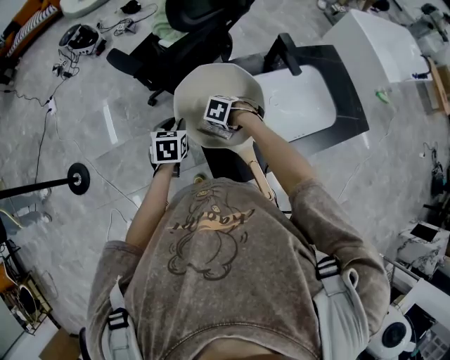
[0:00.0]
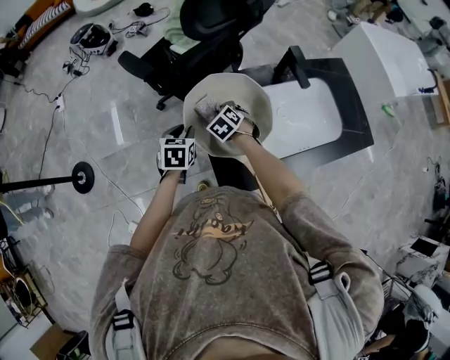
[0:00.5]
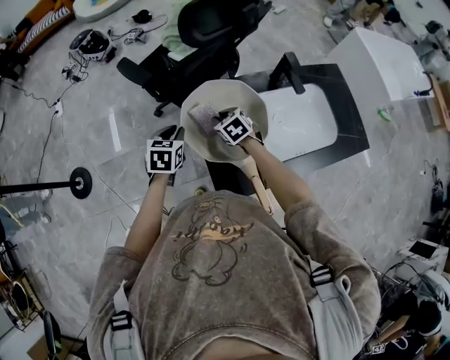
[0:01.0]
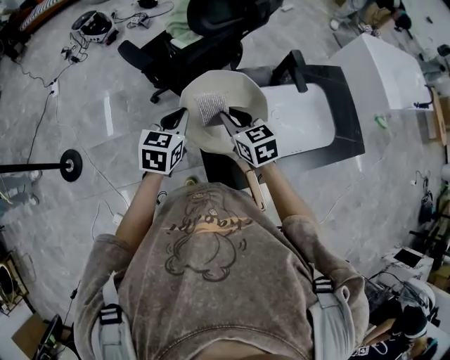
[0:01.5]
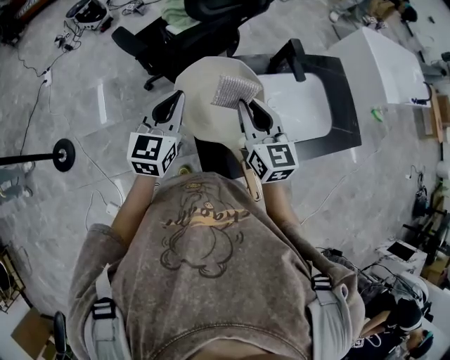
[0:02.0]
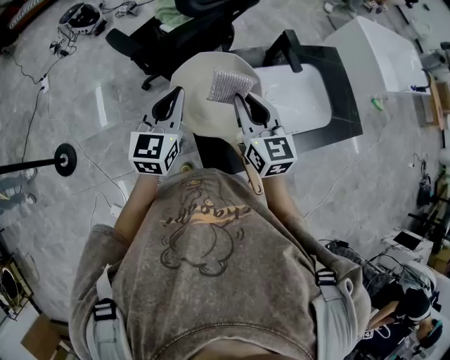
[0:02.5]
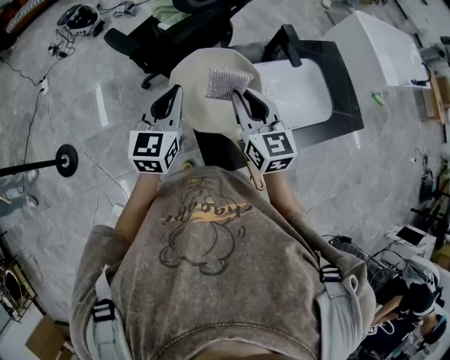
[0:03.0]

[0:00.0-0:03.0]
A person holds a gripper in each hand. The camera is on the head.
0:00.0 to 0:01.5: The left gripper heads upward, covering some 10 cm, and closes up. The right gripper is displaced upward by approximately 20 cm, and points its fingers approximately 50 degrees further upward.
0:01.5 to 0:03.0: Both grippers travel together upward, some 5 cm. The right gripper changes its angle by roughly 30 degrees.

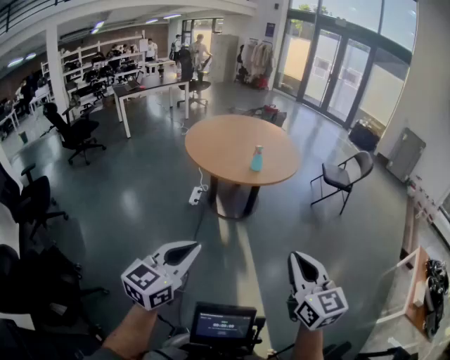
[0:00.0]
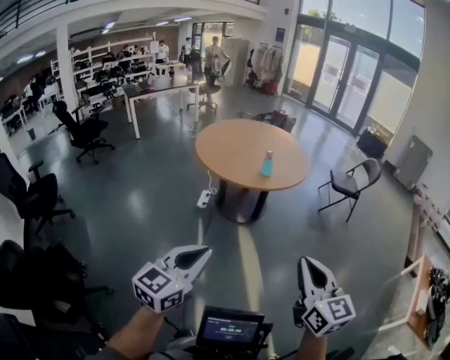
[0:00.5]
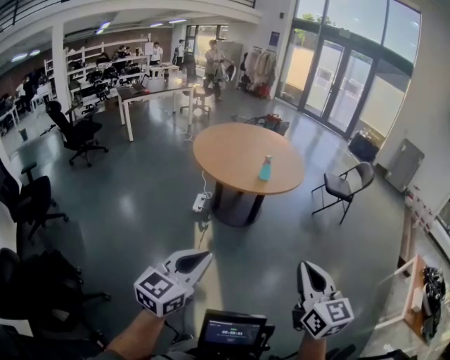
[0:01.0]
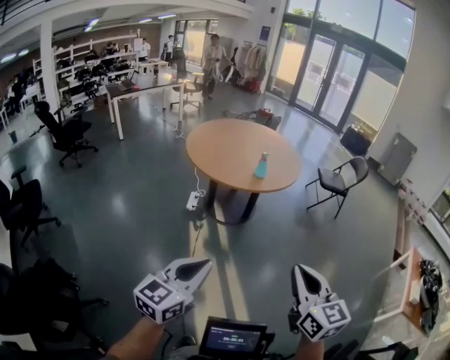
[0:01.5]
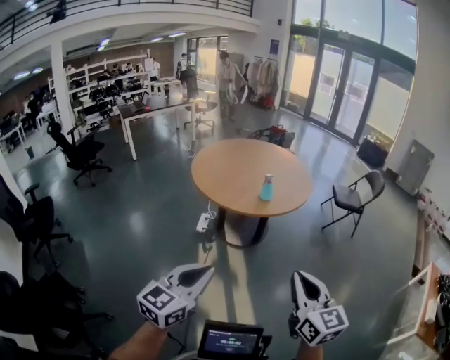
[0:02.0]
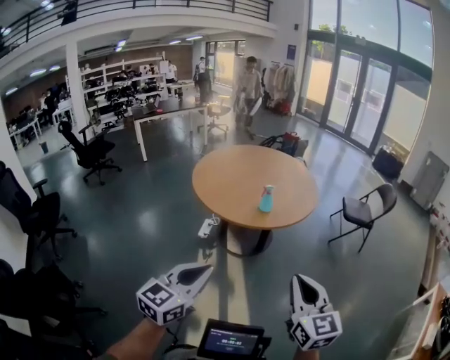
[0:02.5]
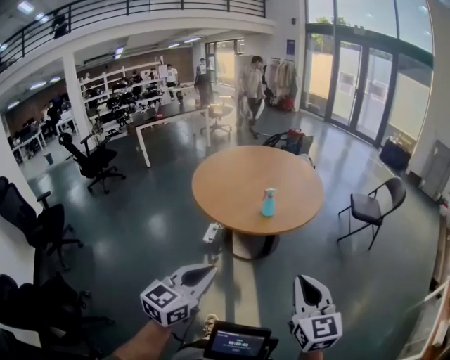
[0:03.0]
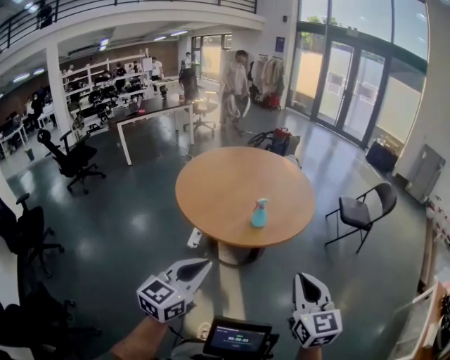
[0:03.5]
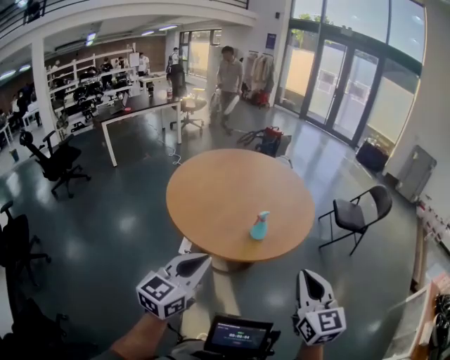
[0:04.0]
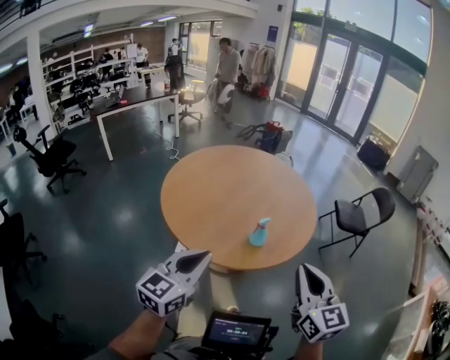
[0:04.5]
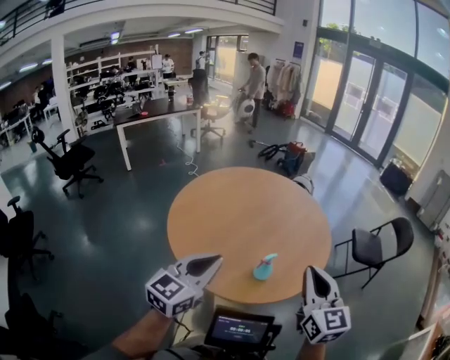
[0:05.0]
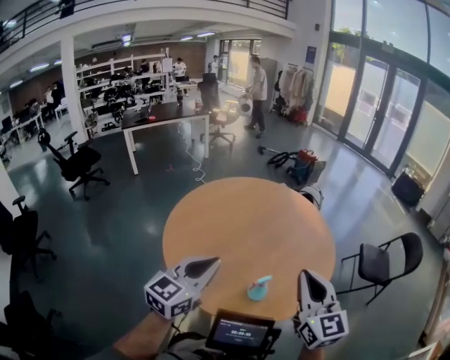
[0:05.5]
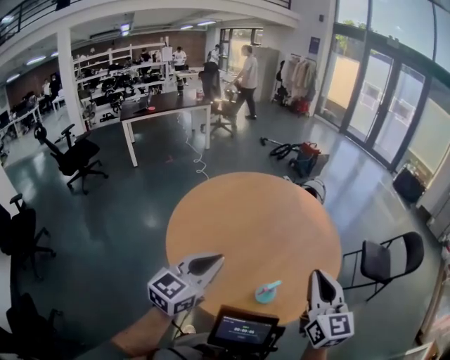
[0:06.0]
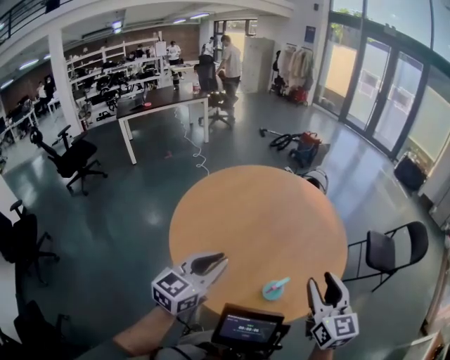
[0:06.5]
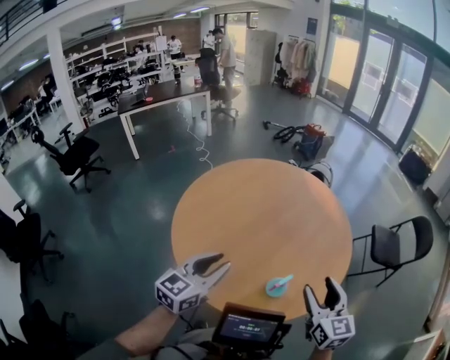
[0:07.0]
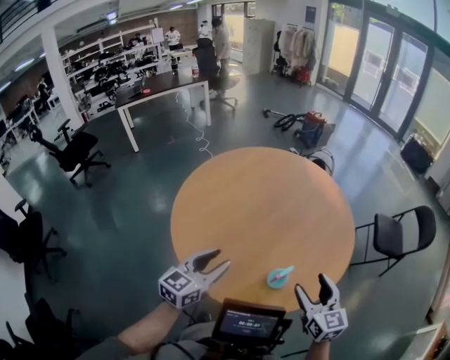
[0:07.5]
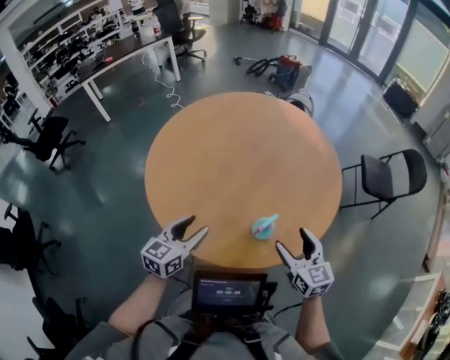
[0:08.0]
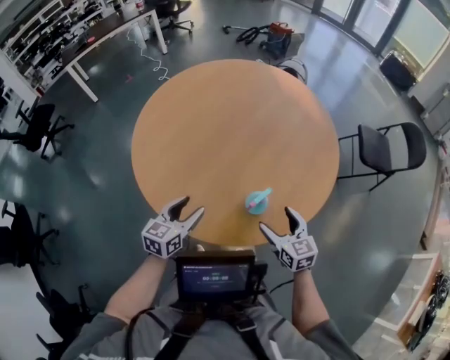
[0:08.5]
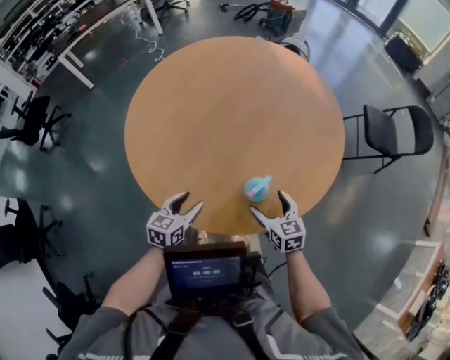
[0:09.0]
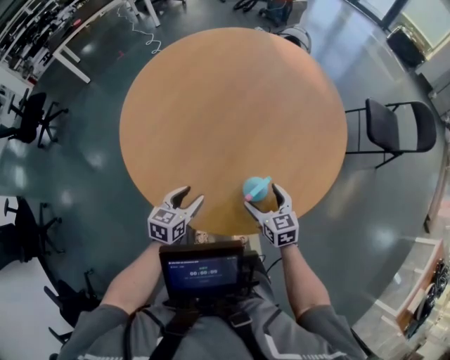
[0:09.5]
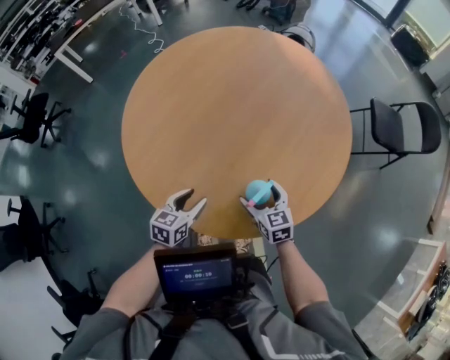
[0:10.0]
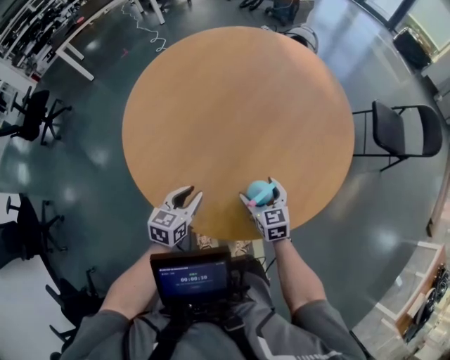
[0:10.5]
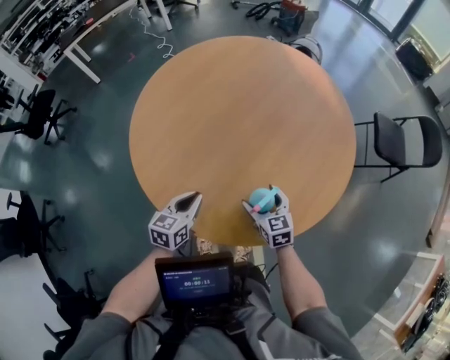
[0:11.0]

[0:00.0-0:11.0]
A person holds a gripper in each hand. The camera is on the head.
0:00.0 to 0:02.0: Both grippers move forward, approximately 10 cm.
0:02.0 to 0:03.5: The grippers both shift forward by some 25 cm.
0:03.5 to 0:05.5: Both grippers move forward, roughly 35 cm.
0:05.5 to 0:07.5: Both grippers move downward, roughly 15 cm. The left gripper opens. Meanwhile the right gripper opens.
0:07.5 to 0:09.0: Both grippers travel together downward, roughly 20 cm. The left gripper rotates approximately 20 degrees.
0:09.0 to 0:11.0: The right gripper shifts approximately 5 cm forward. Meanwhile the left gripper closes its fingers.

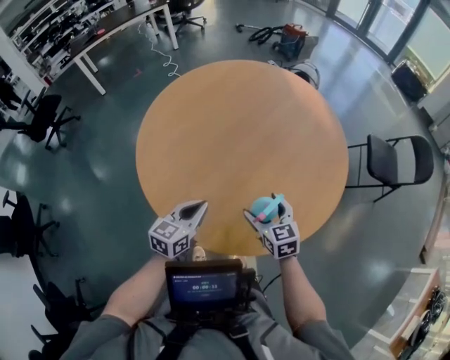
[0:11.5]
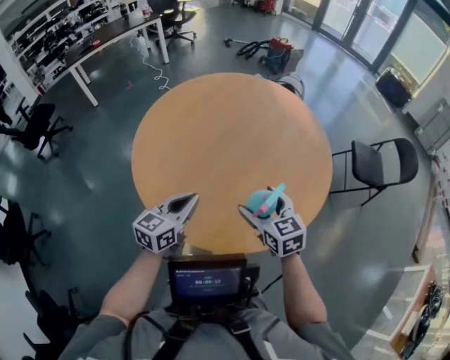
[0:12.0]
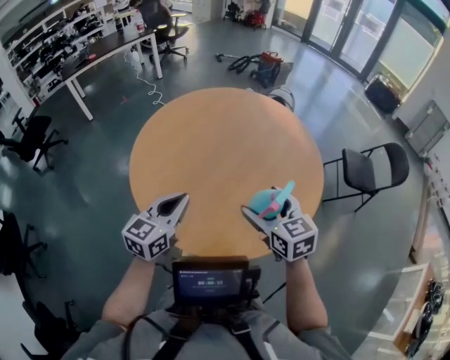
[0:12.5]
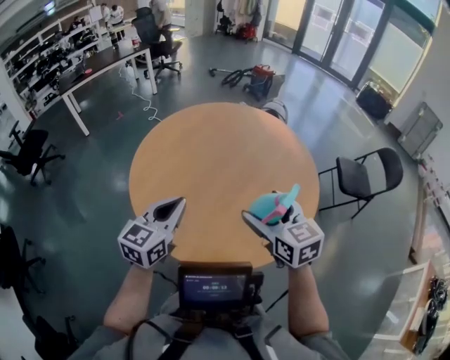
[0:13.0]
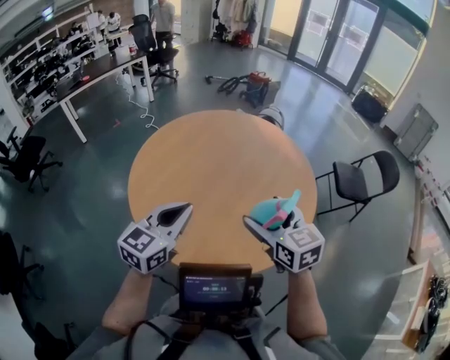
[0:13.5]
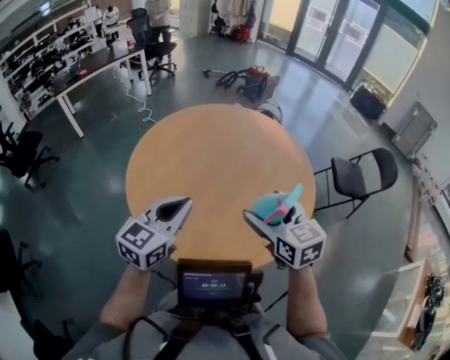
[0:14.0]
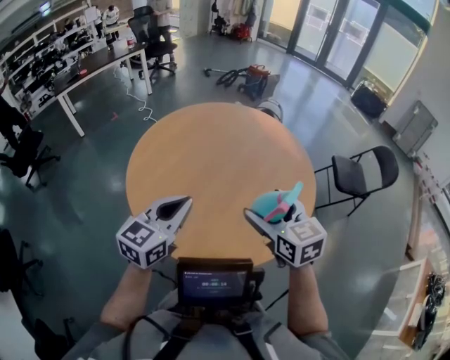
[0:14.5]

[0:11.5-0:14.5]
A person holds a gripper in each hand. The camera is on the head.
0:11.5 to 0:13.0: Both grippers move upward, about 20 cm.
0:13.0 to 0:14.5: There are only small adjustments of the grippers.

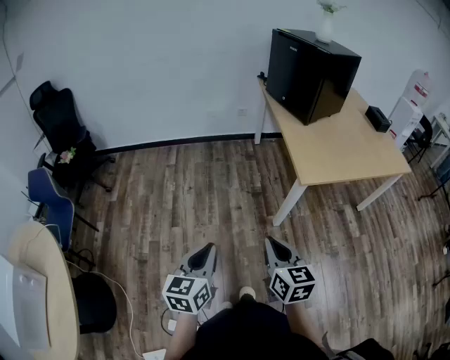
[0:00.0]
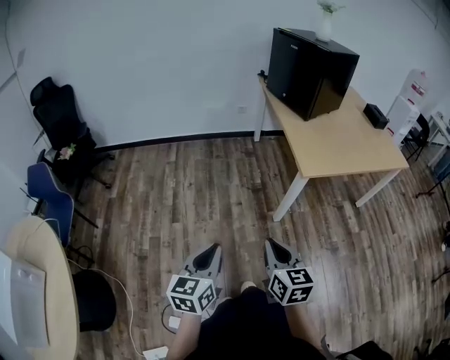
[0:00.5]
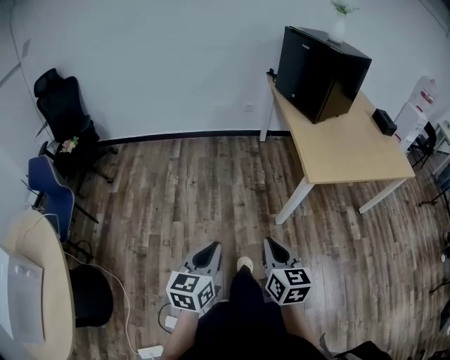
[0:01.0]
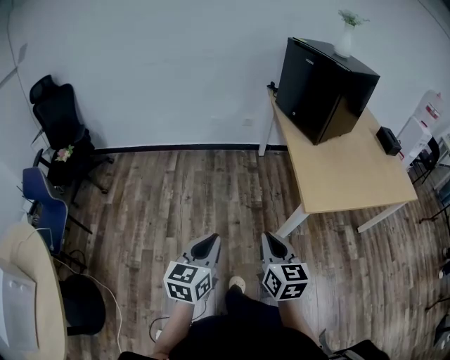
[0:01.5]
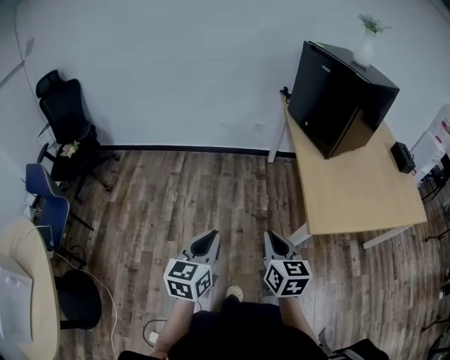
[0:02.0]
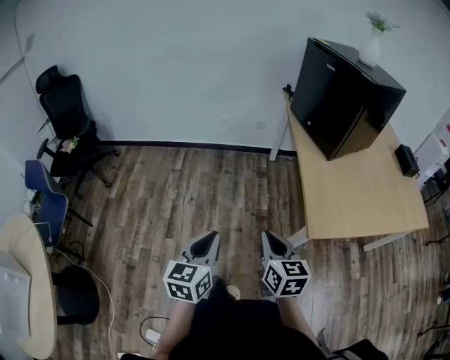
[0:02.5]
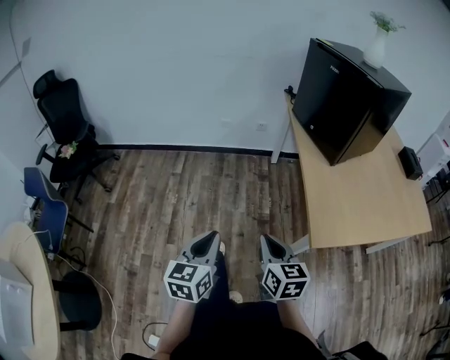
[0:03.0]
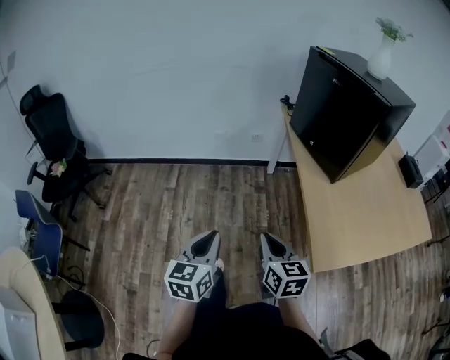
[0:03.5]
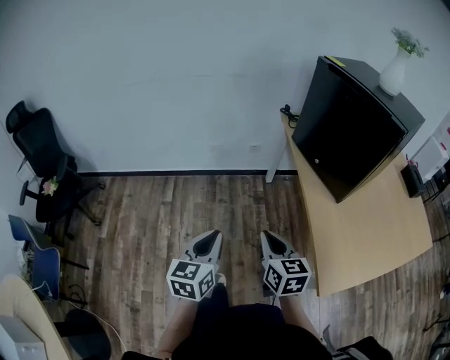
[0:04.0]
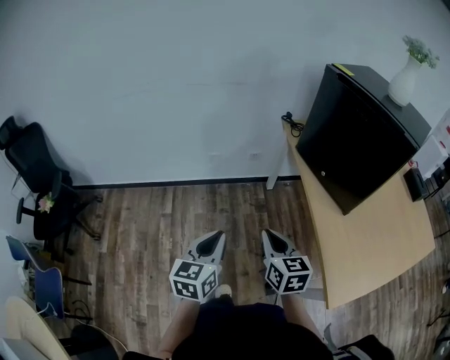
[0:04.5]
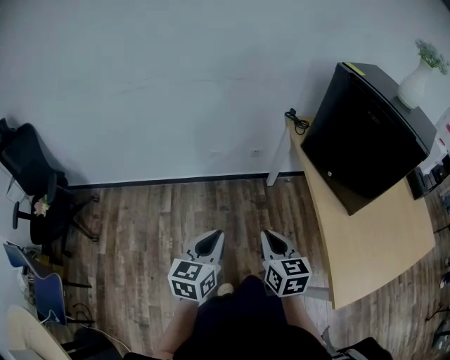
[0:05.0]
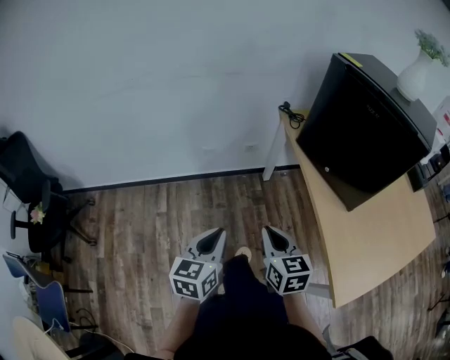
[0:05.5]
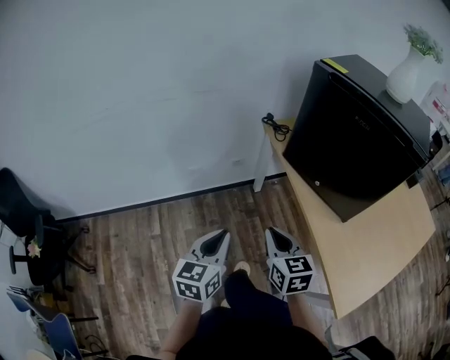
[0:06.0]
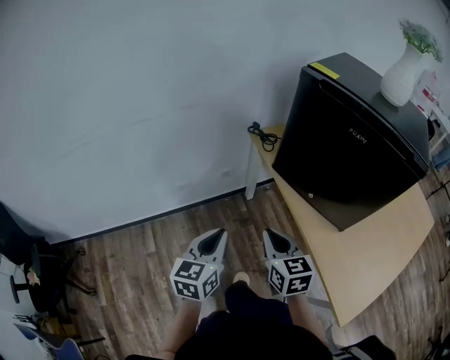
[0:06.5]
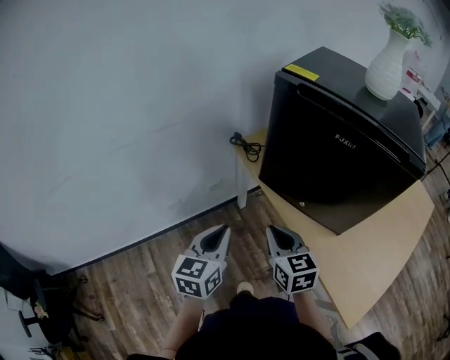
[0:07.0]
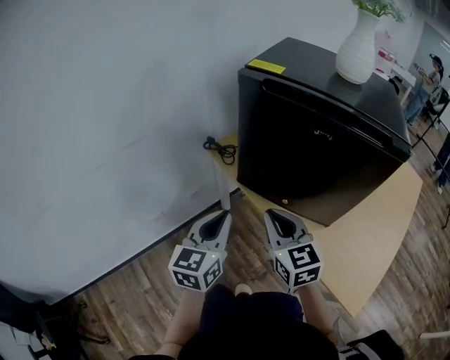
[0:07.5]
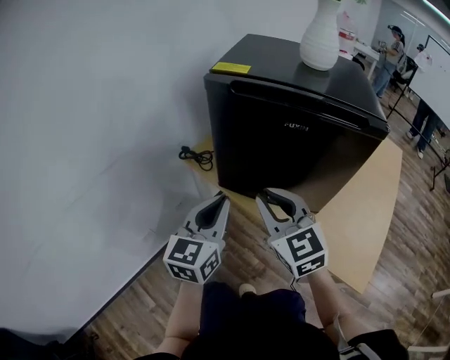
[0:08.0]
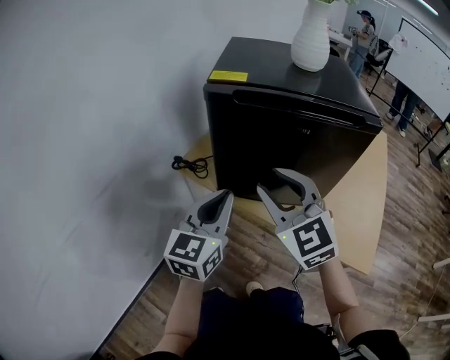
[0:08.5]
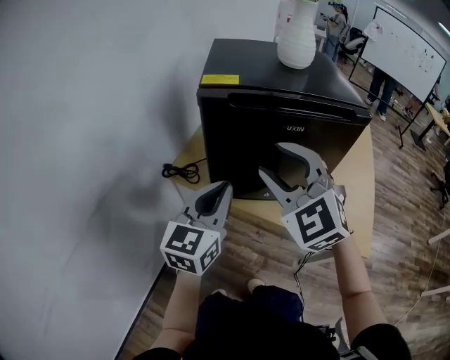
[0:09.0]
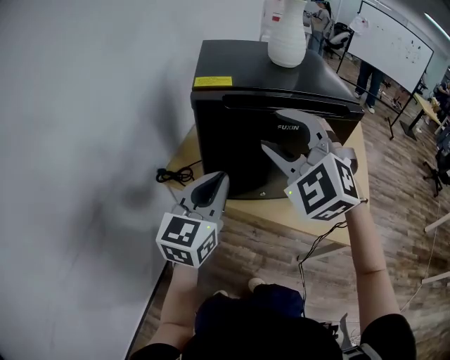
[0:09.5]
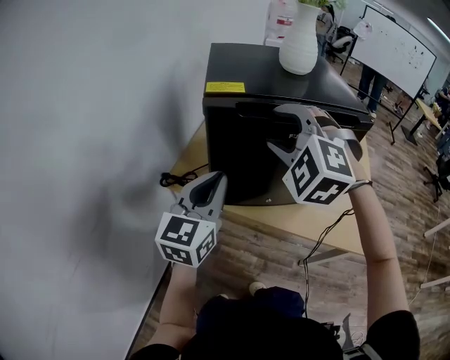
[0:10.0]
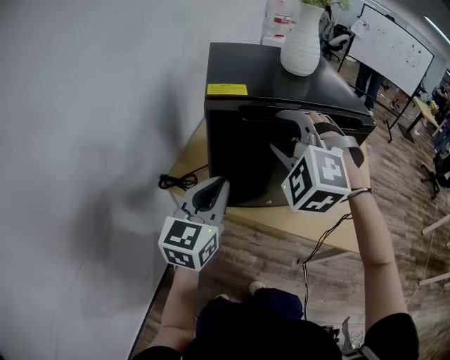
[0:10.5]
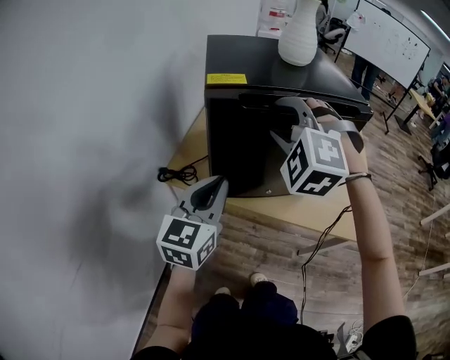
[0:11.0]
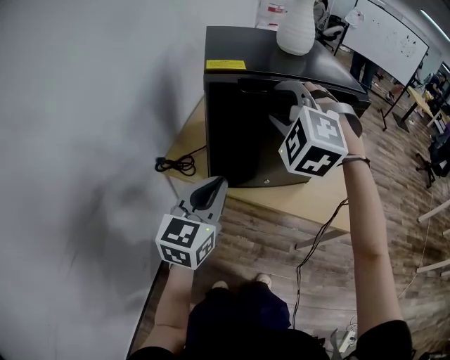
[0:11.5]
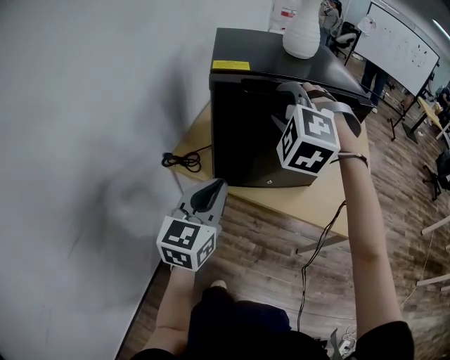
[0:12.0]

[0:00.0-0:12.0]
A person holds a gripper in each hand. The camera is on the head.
0:00.0 to 0:02.0: The two grippers go about 25 cm forward.
0:02.0 to 0:04.0: The grippers both shift forward by about 30 cm.
0:04.0 to 0:06.0: Both grippers travel together forward, some 20 cm.
0:06.0 to 0:08.0: The left gripper ends up approximately 30 cm from where it was, and rotates some 40 degrees; the right gripper moves some 25 cm, and swivels approximately 30 degrees.
0:08.0 to 0:10.0: The left gripper shifts by roughly 10 cm, and rotates roughly 20 degrees; the right gripper shifts some 15 cm upward, twists some 50 degrees counterclockwise, seen from behind, and opens up.
0:10.0 to 0:12.0: The left gripper goes some 5 cm backward.
